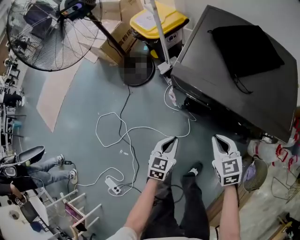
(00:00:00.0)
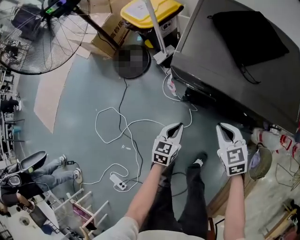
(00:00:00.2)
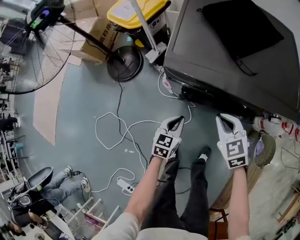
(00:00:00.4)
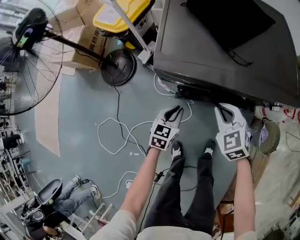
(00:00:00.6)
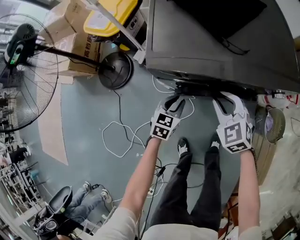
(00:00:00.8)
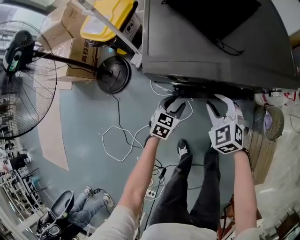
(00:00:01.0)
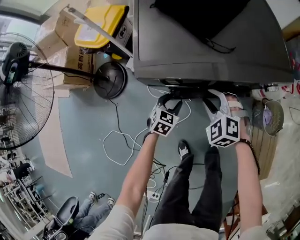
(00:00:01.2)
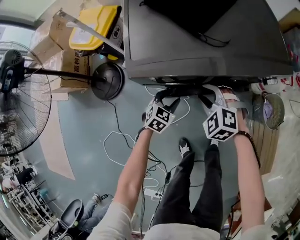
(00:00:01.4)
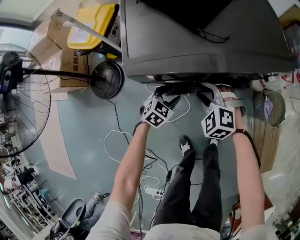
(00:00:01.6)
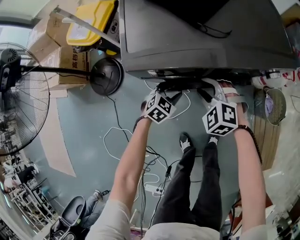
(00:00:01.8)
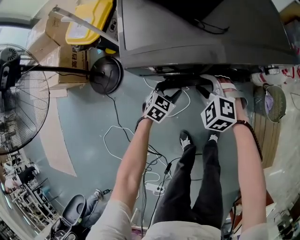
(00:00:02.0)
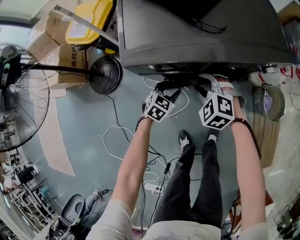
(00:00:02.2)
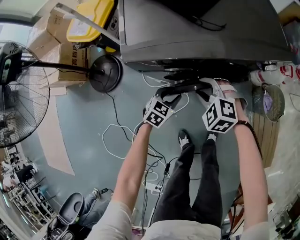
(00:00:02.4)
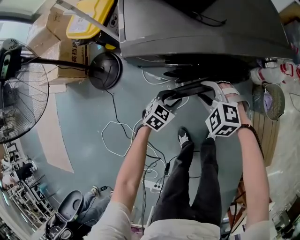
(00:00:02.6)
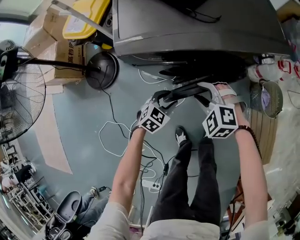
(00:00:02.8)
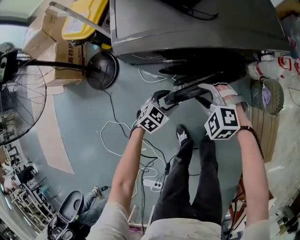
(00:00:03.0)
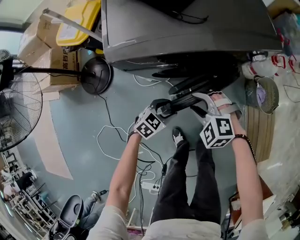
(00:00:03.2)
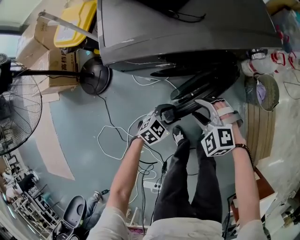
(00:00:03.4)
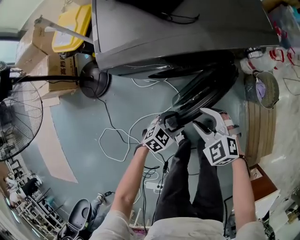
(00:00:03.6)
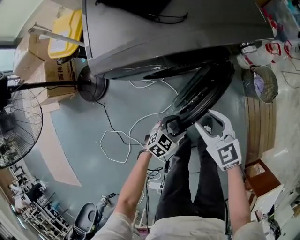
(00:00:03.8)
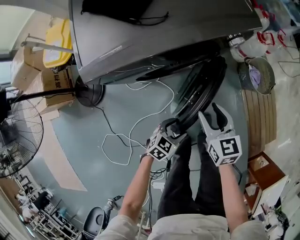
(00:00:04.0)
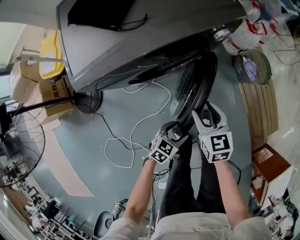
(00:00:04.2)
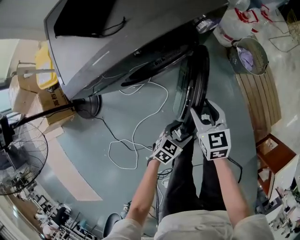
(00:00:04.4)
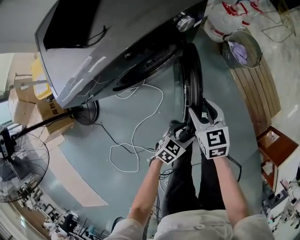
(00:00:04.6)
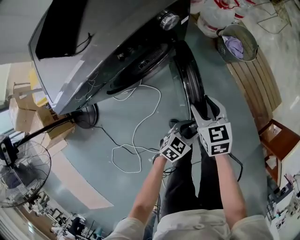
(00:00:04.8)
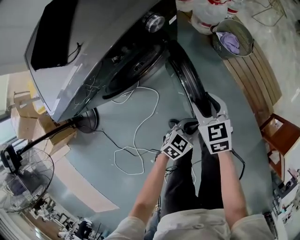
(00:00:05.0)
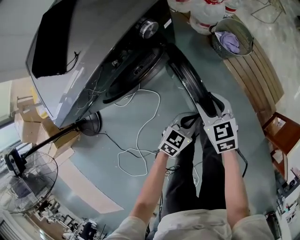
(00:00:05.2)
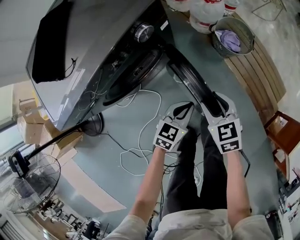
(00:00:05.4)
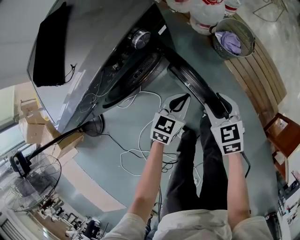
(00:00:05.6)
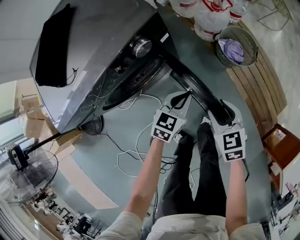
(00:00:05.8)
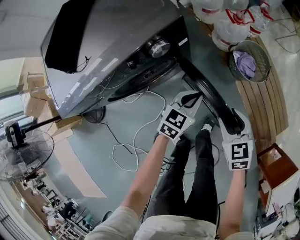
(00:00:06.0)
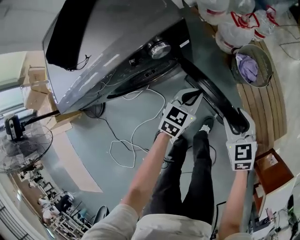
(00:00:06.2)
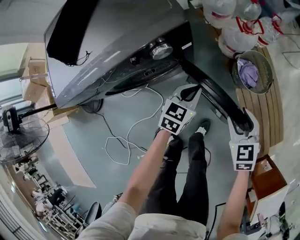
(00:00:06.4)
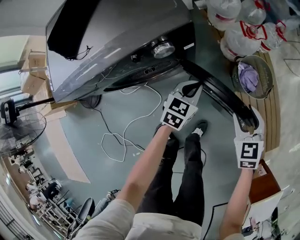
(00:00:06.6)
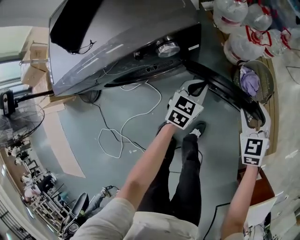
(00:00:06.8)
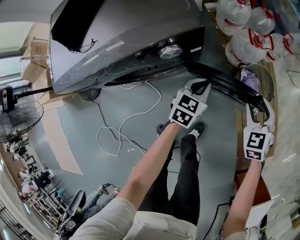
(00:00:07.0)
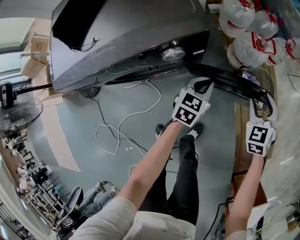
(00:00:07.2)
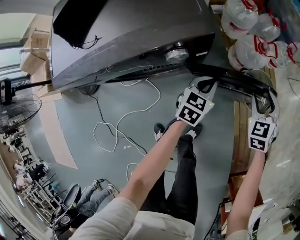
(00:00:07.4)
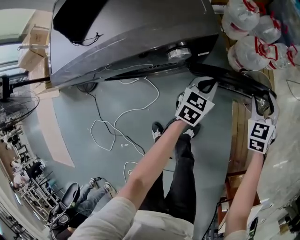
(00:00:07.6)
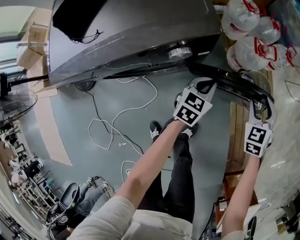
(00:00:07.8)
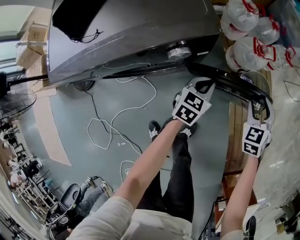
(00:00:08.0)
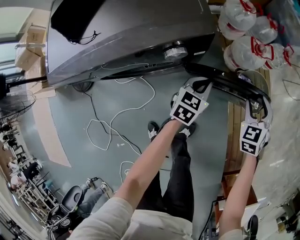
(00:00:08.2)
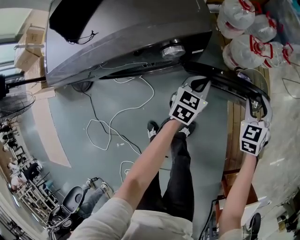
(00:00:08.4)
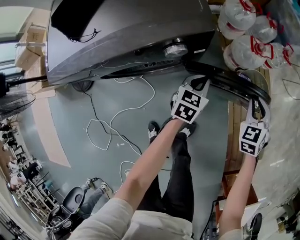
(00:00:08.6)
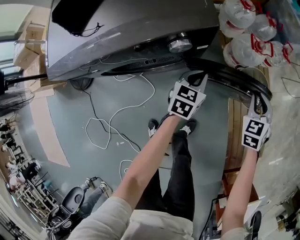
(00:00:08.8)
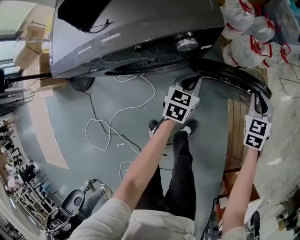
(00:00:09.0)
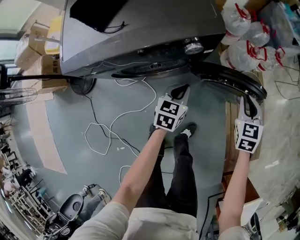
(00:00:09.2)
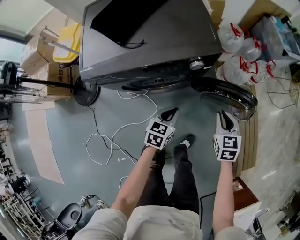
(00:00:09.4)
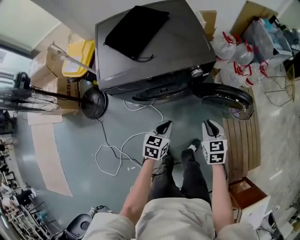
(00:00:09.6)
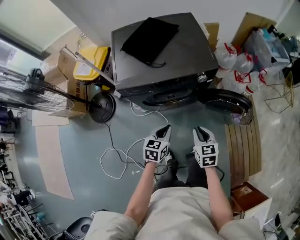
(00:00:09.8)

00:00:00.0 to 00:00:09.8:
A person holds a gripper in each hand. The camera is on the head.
00:00:00.0 to 00:00:01.4: The left gripper ends up some 20 cm from where it was, changes its angle by roughly 50 degrees, and opens; the right gripper moves downward, some 10 cm, turns by roughly 30 degrees, and opens.
00:00:01.4 to 00:00:02.8: The grippers both shift backward by roughly 10 cm.
00:00:02.8 to 00:00:04.2: The right gripper moves some 15 cm, and rolls clockwise, seen from behind, by approximately 70 degrees, while the left gripper changes place by about 20 cm, and changes its angle by approximately 20 degrees.
00:00:04.2 to 00:00:05.6: The left gripper moves forward and to the right, some 25 cm, and closes up. Meanwhile the right gripper moves to the right and forward, approximately 20 cm.
00:00:05.6 to 00:00:07.0: The right gripper moves forward and to the right, roughly 25 cm, and swivels about 30 degrees, while the left gripper shifts approximately 20 cm forward, and swivels roughly 20 degrees.
00:00:08.4 to 00:00:09.8: Both grippers travel together backward, to the left and upward, about 40 cm. The right gripper changes its angle by some 30 degrees, and closes up.

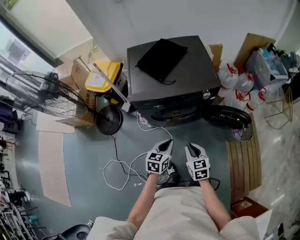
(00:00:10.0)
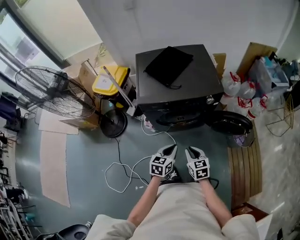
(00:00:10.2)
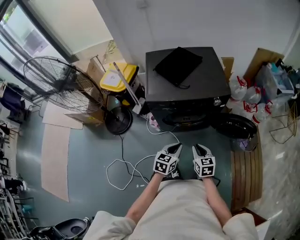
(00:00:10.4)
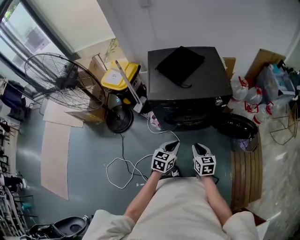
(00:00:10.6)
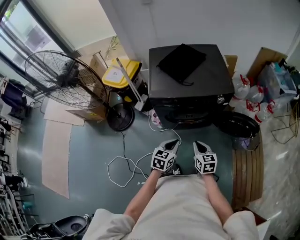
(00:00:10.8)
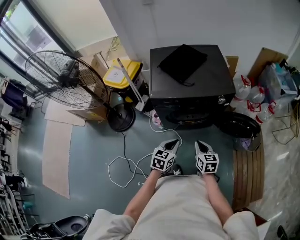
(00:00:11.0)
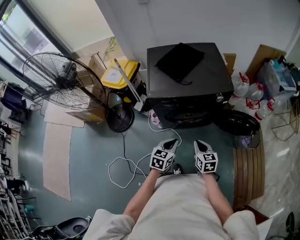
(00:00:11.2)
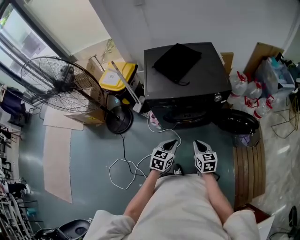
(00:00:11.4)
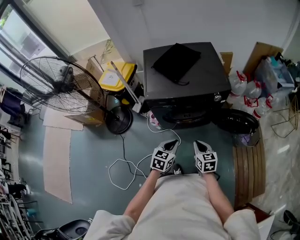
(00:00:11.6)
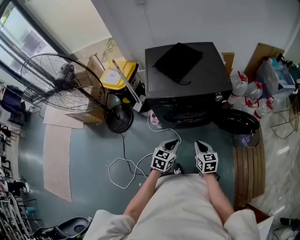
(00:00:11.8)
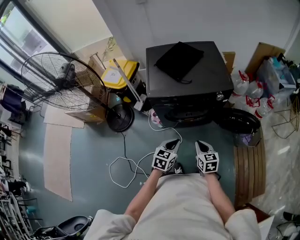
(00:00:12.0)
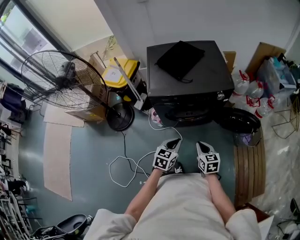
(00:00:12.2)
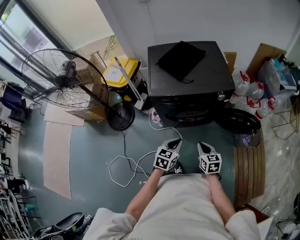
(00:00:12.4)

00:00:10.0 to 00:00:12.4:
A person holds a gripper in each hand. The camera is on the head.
00:00:10.0 to 00:00:11.2: The left gripper changes place by roughly 5 cm.
00:00:11.2 to 00:00:12.4: The grippers move only a little.
